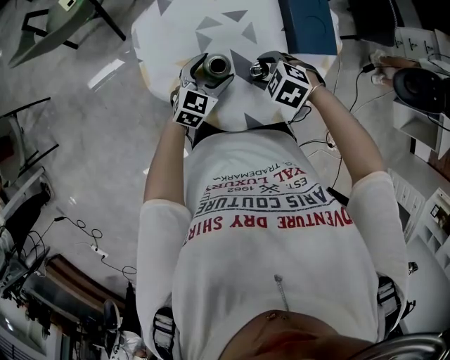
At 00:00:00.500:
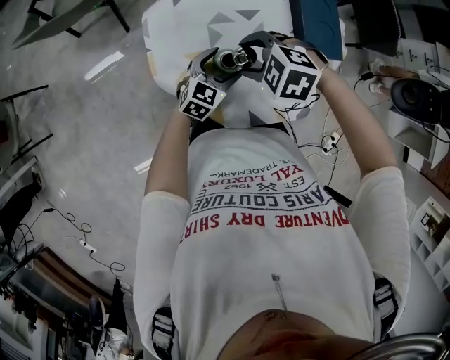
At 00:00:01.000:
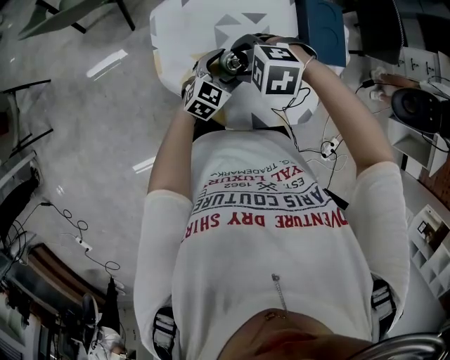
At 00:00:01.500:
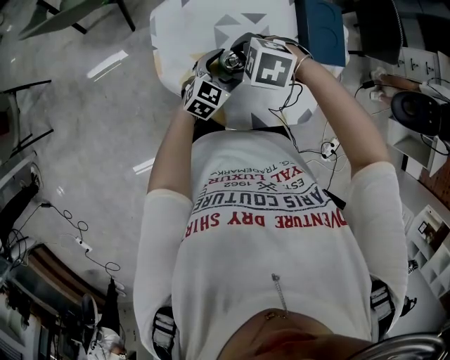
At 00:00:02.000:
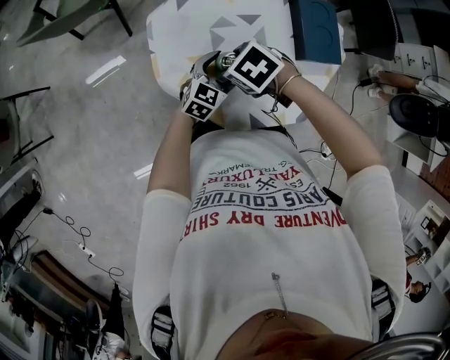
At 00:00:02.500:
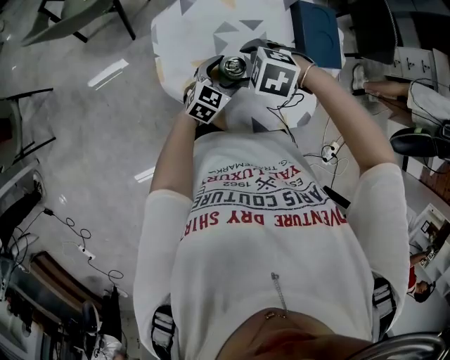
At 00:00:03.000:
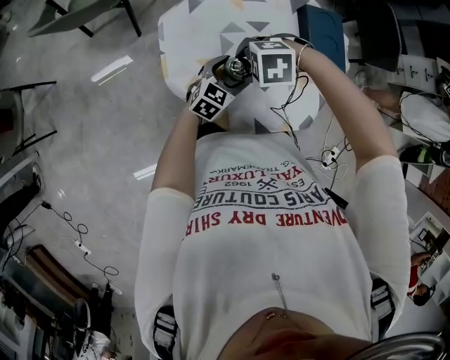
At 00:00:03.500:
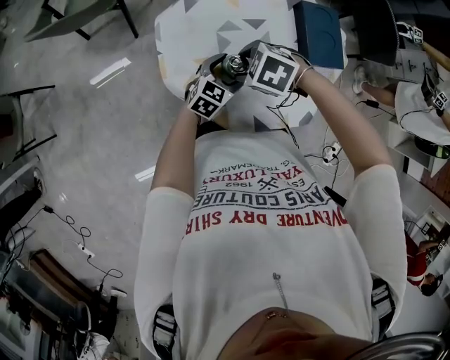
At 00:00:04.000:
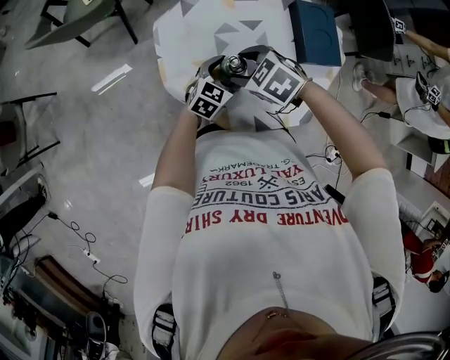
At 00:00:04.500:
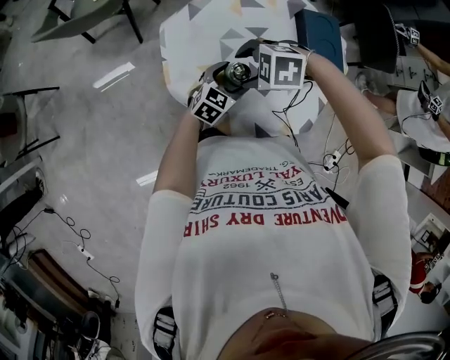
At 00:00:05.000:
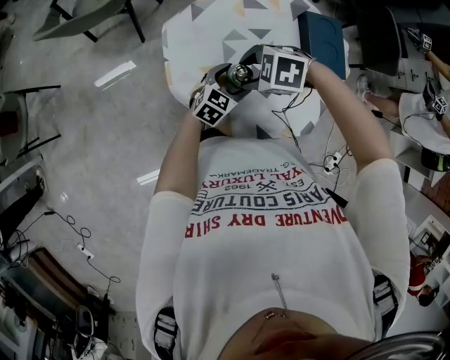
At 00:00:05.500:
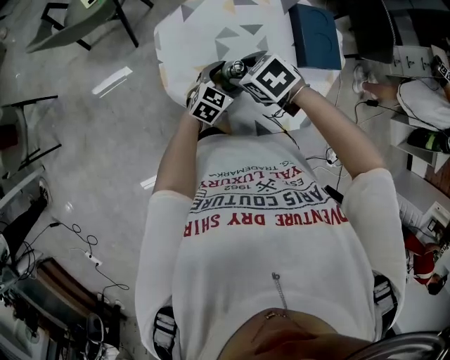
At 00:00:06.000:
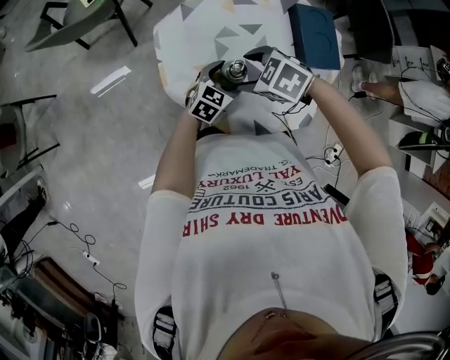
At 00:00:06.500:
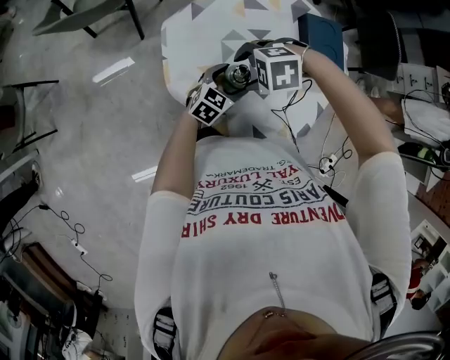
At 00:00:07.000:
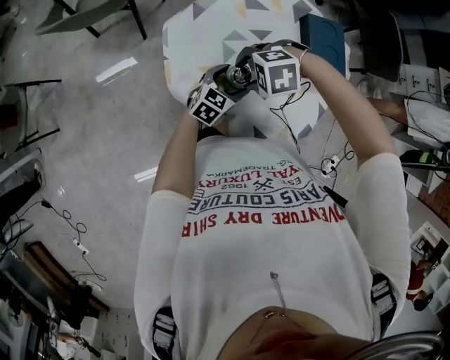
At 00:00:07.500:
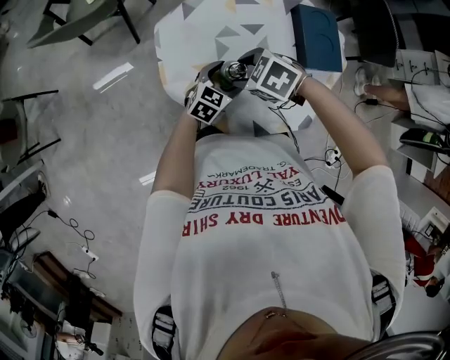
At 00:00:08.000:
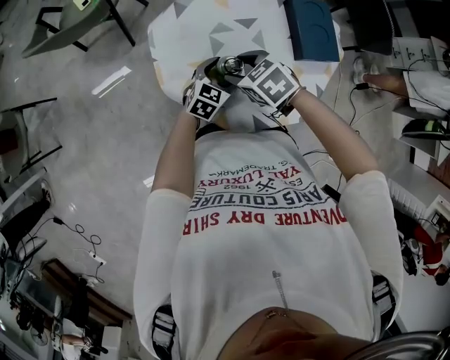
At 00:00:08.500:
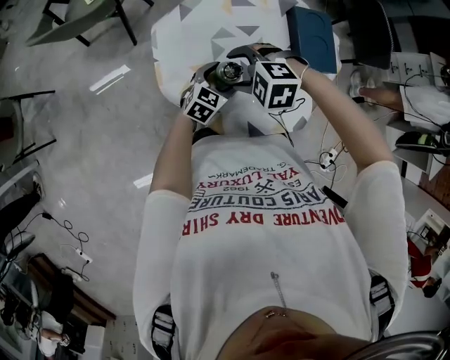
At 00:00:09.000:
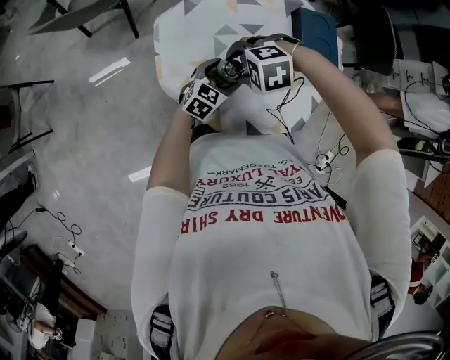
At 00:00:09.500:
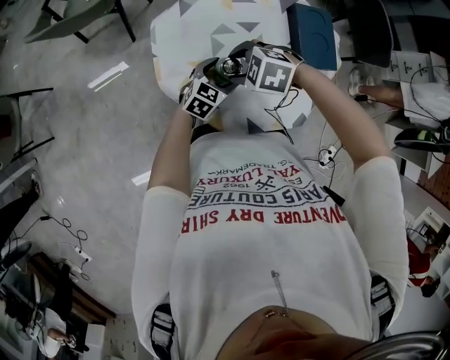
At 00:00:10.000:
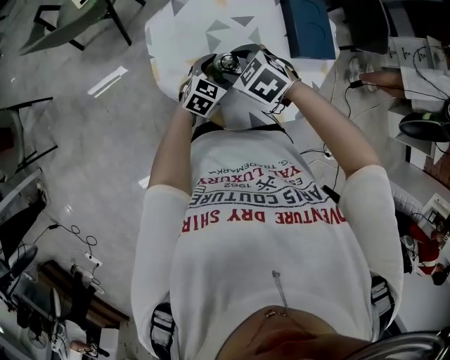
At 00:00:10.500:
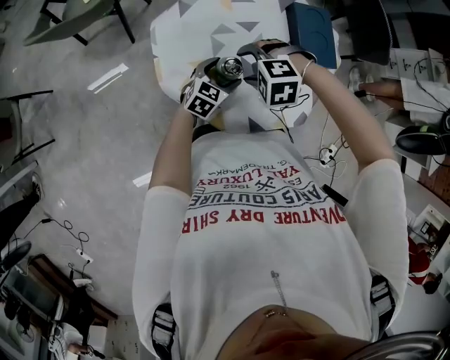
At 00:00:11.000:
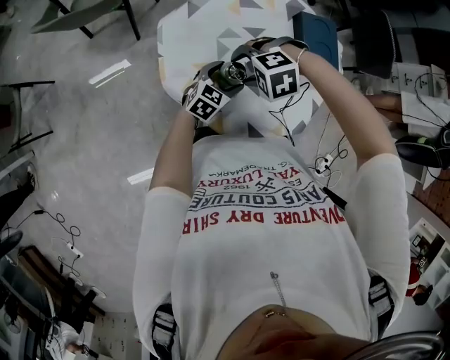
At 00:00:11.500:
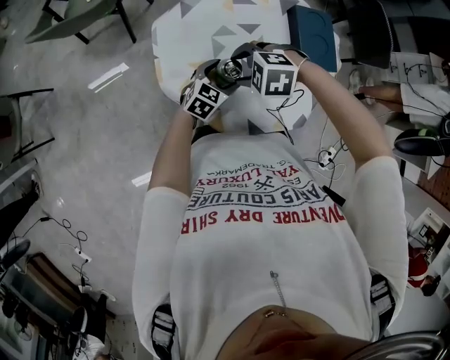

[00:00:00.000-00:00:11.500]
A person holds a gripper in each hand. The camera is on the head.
00:00:00.000 to 00:00:02.000: The right gripper shifts by approximately 10 cm.

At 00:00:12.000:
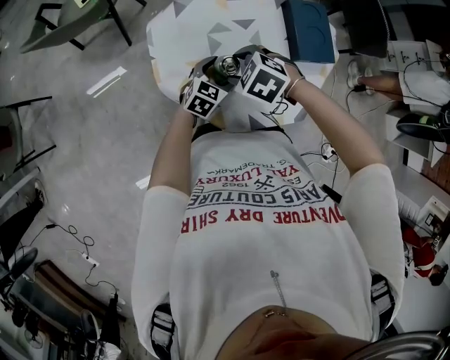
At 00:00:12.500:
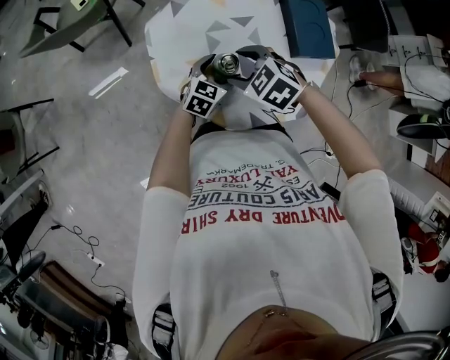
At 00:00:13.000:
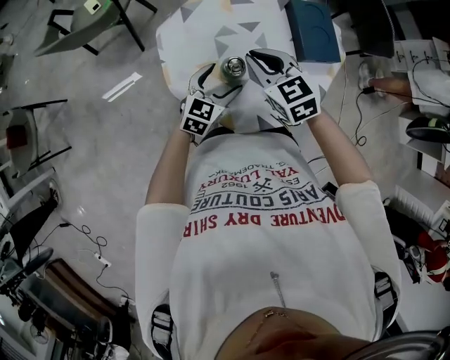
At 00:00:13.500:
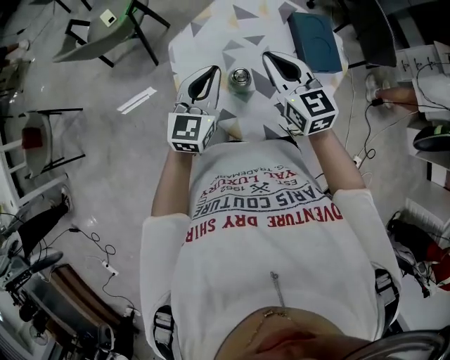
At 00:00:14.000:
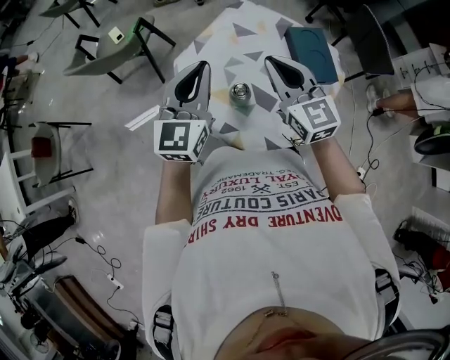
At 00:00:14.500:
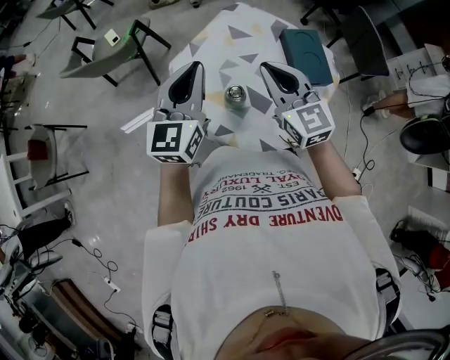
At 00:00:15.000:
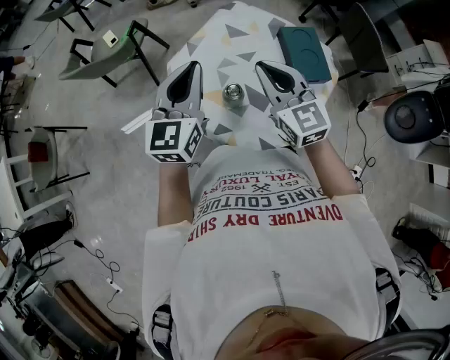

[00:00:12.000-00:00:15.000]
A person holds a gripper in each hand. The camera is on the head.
00:00:12.000 to 00:00:13.500: The two grippers go approximately 20 cm upward. The right gripper points its fingers roughly 50 degrees further upward, and closes its fingers, while the left gripper swivels some 30 degrees, and closes up.
00:00:13.500 to 00:00:15.000: The right gripper heads upward, covering approximately 5 cm. Meanwhile the left gripper goes approximately 10 cm upward.

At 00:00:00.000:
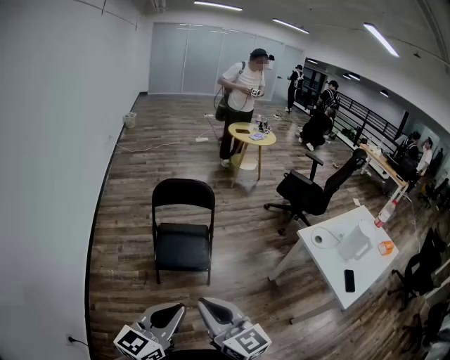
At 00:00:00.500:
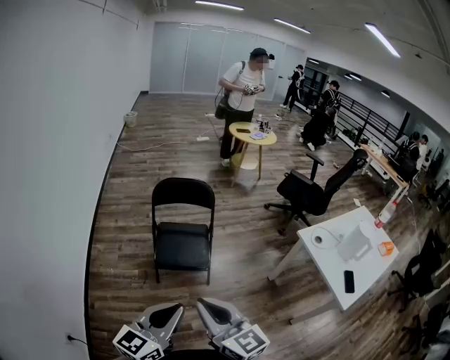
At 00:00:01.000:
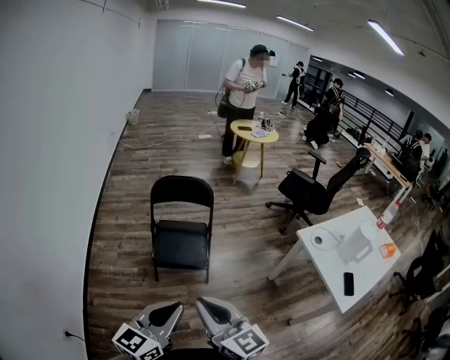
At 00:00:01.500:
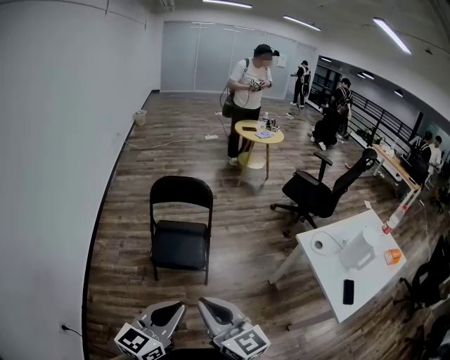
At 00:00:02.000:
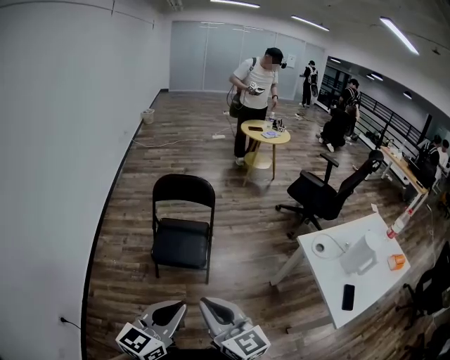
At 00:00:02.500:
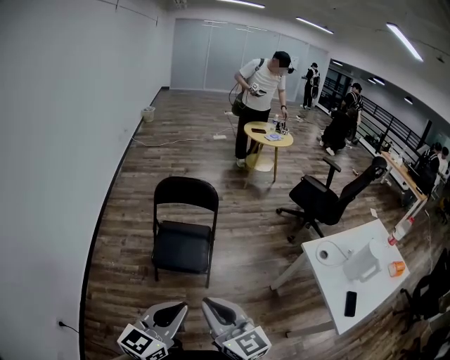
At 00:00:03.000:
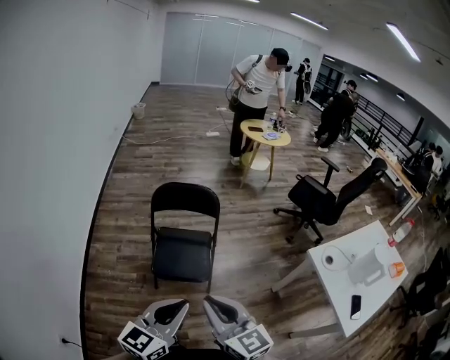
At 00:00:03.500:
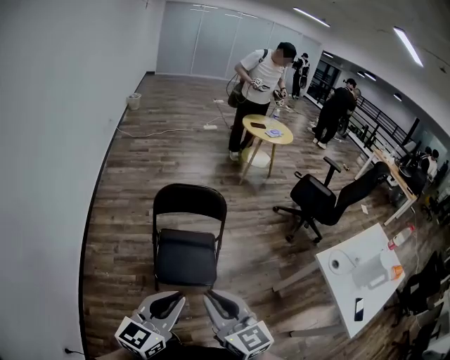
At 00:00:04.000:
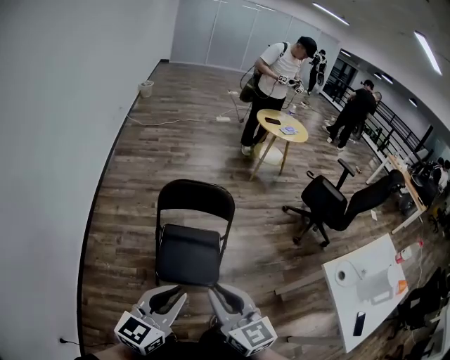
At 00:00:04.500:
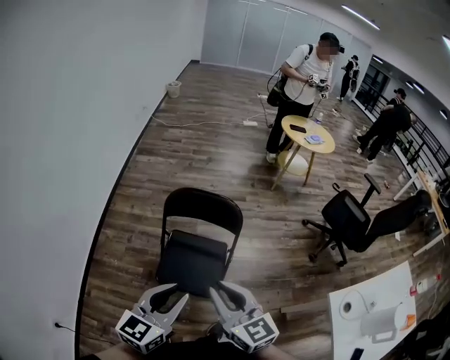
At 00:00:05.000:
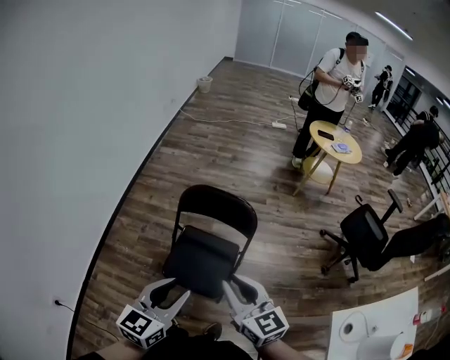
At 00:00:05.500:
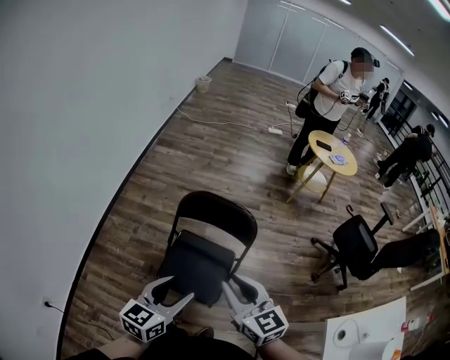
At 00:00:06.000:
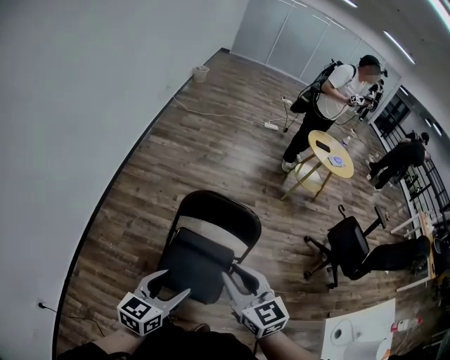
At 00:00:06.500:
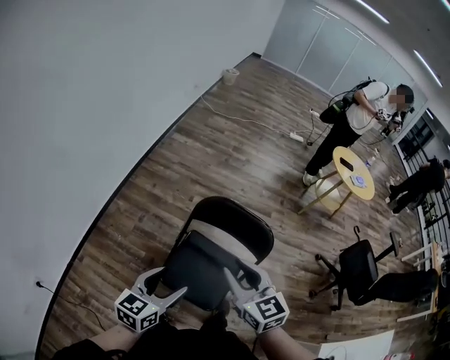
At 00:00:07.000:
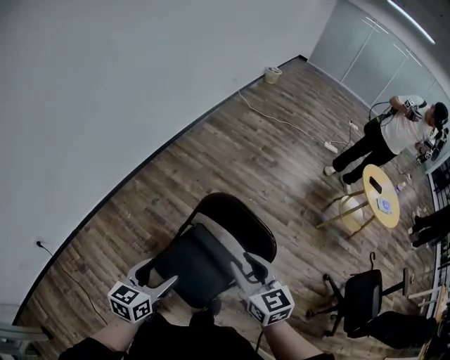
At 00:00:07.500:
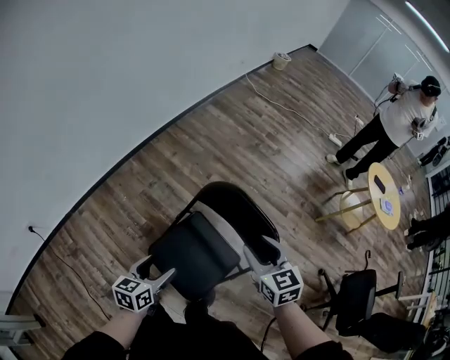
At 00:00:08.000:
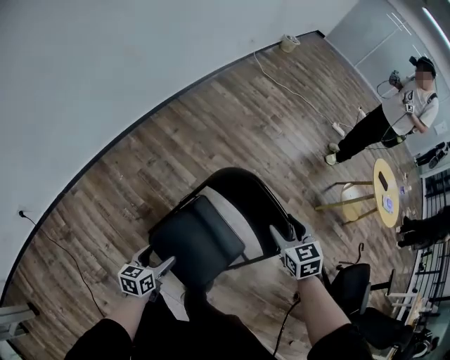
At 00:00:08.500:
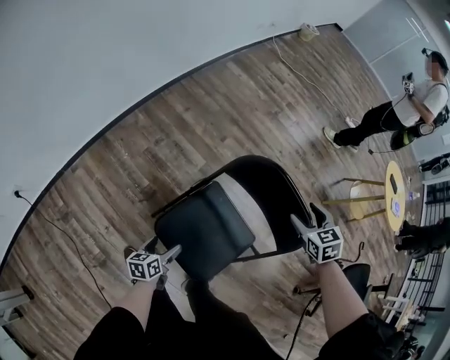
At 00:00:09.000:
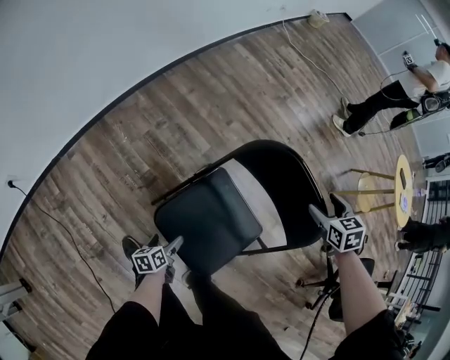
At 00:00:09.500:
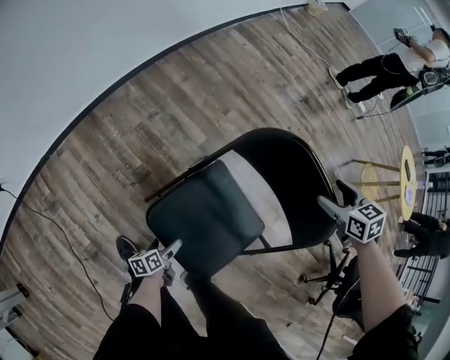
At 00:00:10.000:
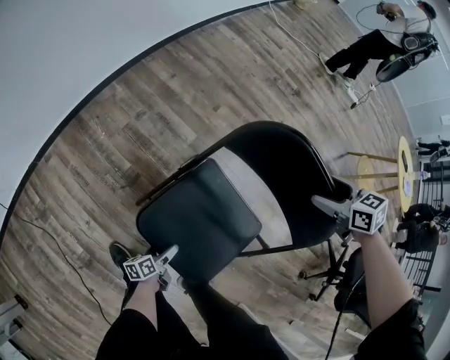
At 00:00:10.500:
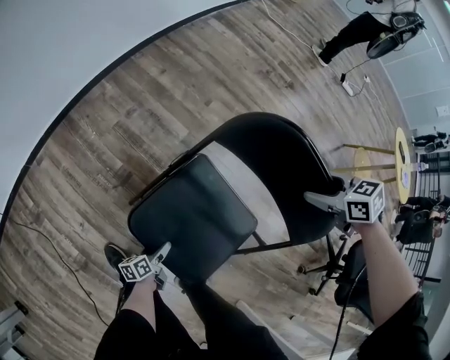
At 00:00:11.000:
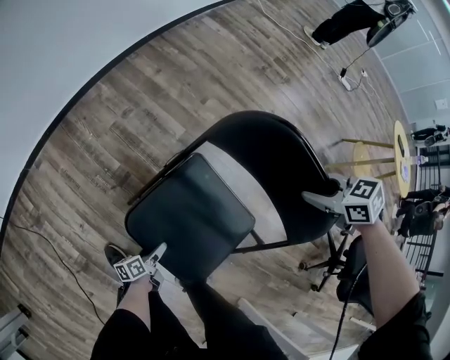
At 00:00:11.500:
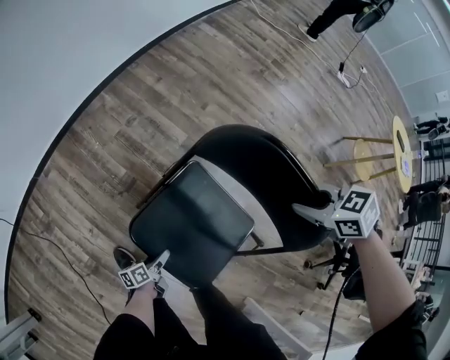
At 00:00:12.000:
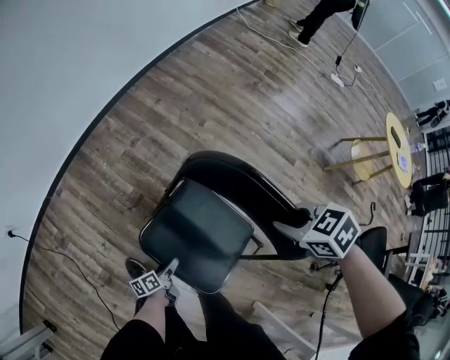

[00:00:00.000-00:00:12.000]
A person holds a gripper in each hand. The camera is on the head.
00:00:00.000 to 00:00:02.000: The two grippers go roughly 10 cm to the right.
00:00:02.000 to 00:00:04.000: The two grippers go approximately 30 cm forward and to the left.
00:00:04.000 to 00:00:06.000: The right gripper is displaced forward by roughly 20 cm. The left gripper is displaced forward and downward by approximately 15 cm, rotates approximately 20 degrees, and opens up.
00:00:06.000 to 00:00:08.000: The right gripper heads forward, downward and to the right, covering about 35 cm, turns by approximately 30 degrees, and opens up. Meanwhile the left gripper shifts about 30 cm downward, and rotates about 40 degrees.
00:00:08.000 to 00:00:10.000: The left gripper travels downward by some 30 cm, and changes its angle by about 30 degrees. The right gripper heads downward and forward, covering roughly 15 cm, and rotates about 20 degrees.
00:00:10.000 to 00:00:12.000: The right gripper heads to the left, backward and upward, covering approximately 15 cm, and closes up. The left gripper heads upward, covering roughly 10 cm, and closes its fingers.
